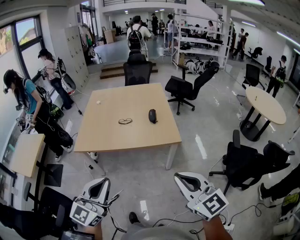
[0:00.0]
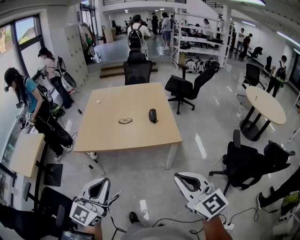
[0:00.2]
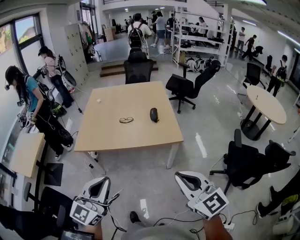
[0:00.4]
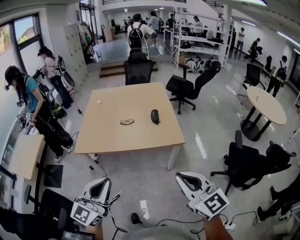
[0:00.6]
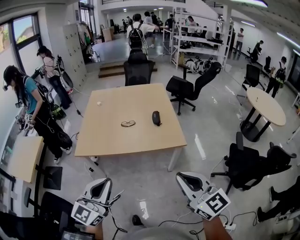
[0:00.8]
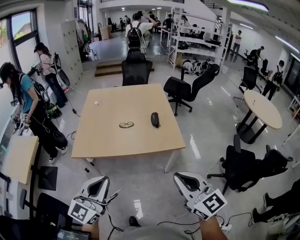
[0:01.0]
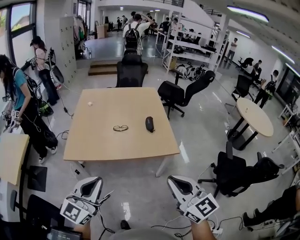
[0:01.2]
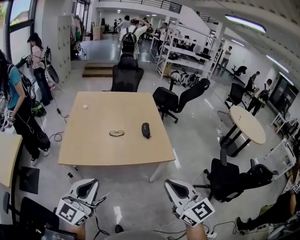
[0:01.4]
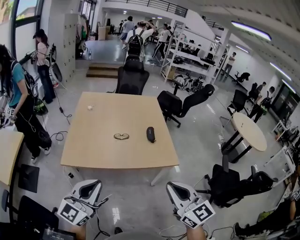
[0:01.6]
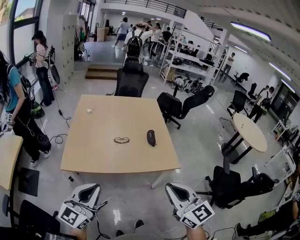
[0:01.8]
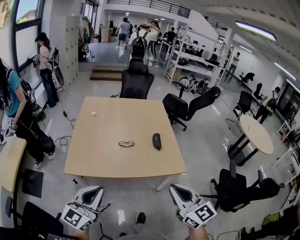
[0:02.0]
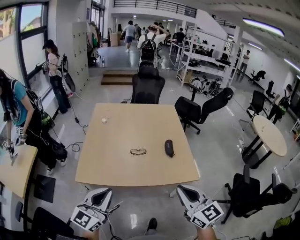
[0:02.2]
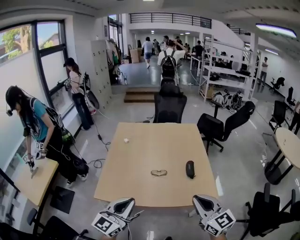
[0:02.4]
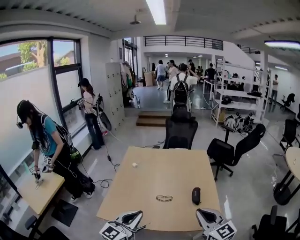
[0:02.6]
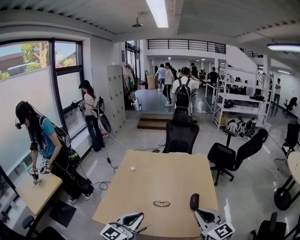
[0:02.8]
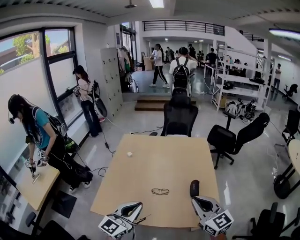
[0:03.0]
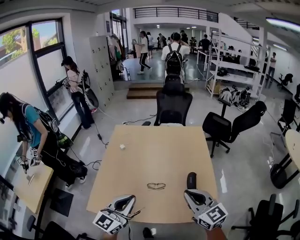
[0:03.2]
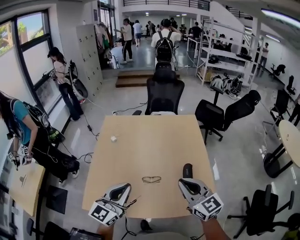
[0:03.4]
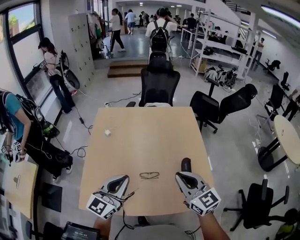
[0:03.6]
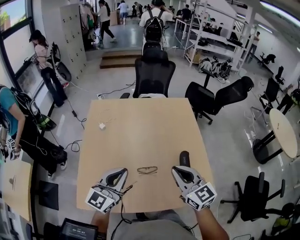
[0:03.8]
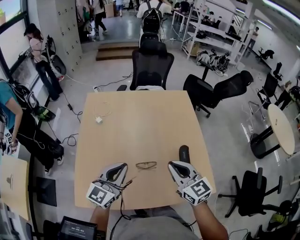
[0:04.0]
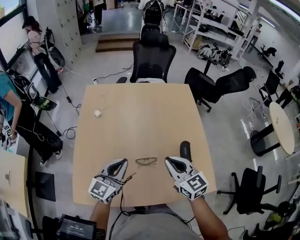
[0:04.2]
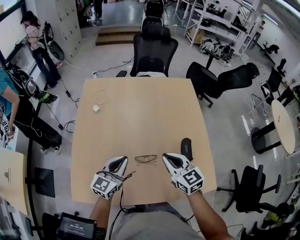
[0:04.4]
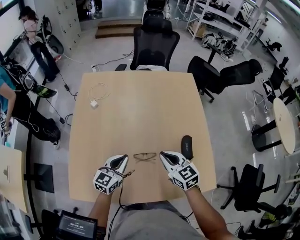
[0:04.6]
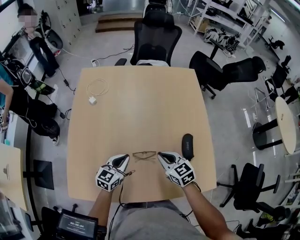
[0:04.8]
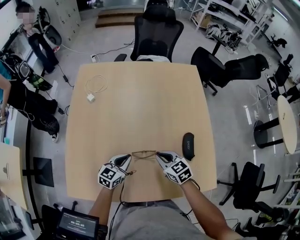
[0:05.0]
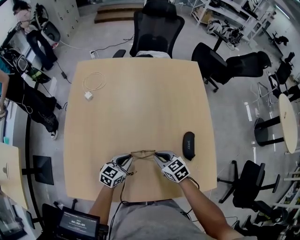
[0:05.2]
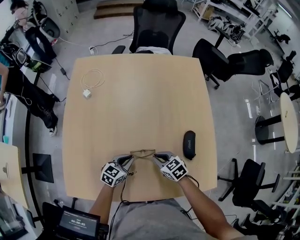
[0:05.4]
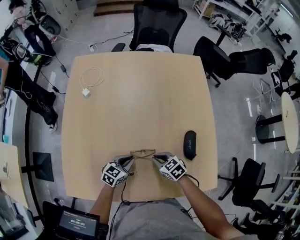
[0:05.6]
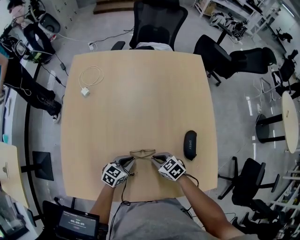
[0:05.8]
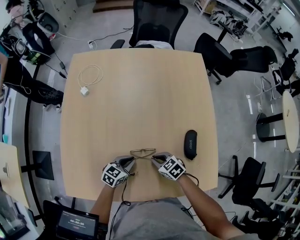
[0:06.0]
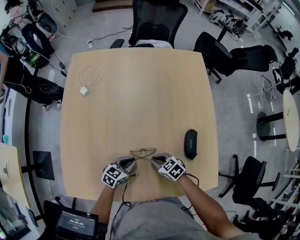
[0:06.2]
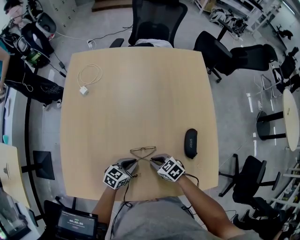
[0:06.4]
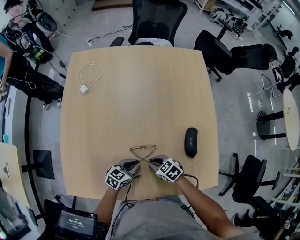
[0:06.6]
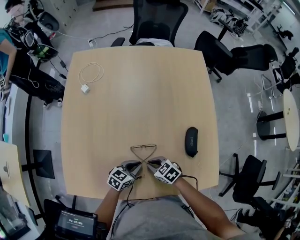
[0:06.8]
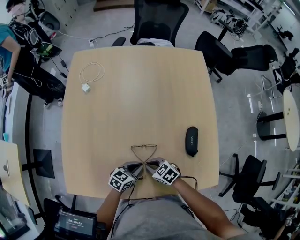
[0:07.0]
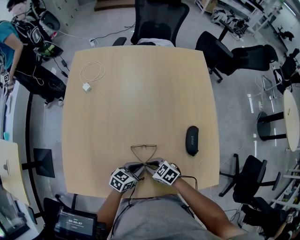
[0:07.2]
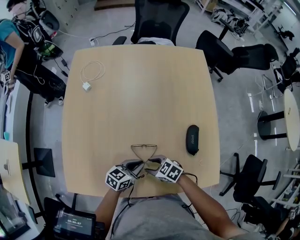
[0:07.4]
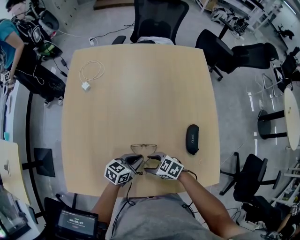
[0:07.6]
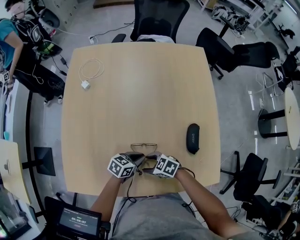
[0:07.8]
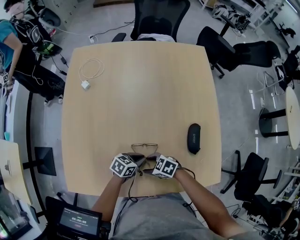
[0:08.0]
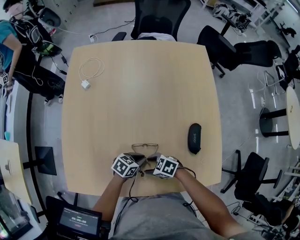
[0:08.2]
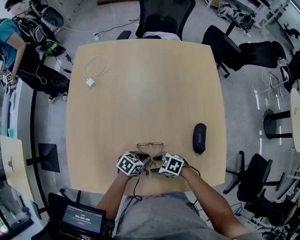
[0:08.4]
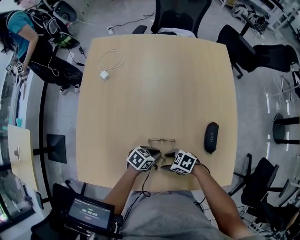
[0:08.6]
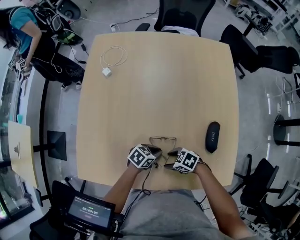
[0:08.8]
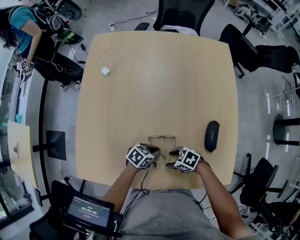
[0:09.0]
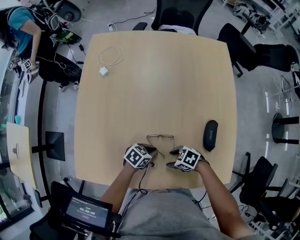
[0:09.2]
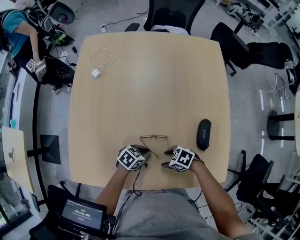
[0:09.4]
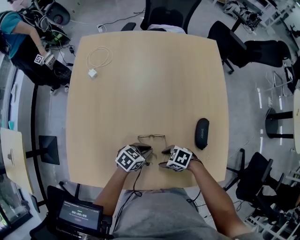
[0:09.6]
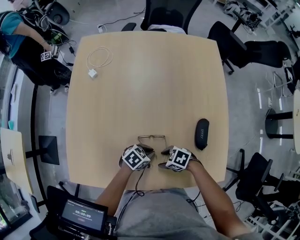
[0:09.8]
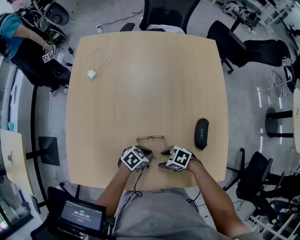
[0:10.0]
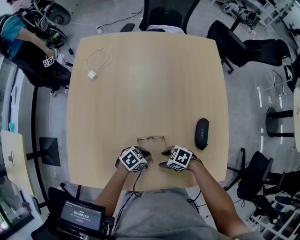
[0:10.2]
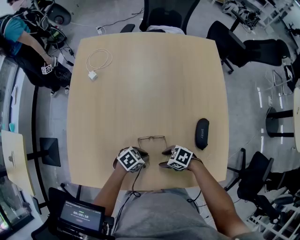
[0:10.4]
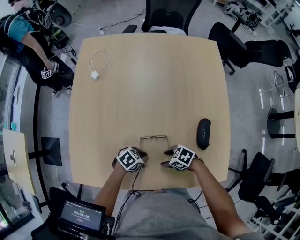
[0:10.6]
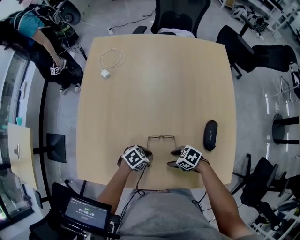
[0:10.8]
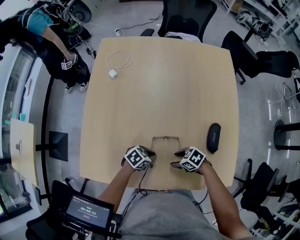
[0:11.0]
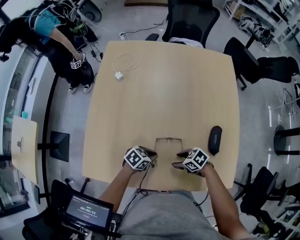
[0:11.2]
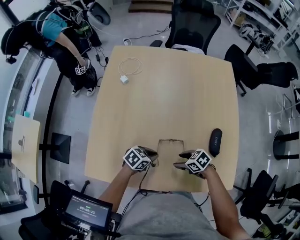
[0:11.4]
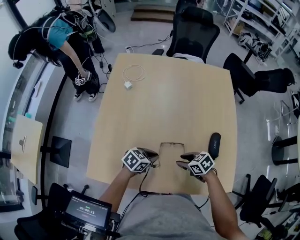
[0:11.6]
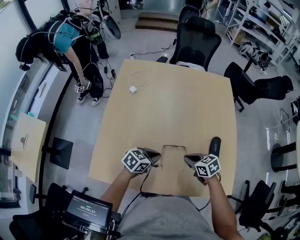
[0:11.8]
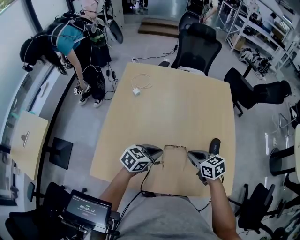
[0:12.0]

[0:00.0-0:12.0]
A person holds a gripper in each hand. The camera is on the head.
0:00.0 to 0:01.6: The left gripper moves forward and to the left, some 25 cm. The right gripper is displaced to the left and forward by some 25 cm.
0:01.6 to 0:03.0: Both grippers move forward, about 30 cm.
0:03.0 to 0:04.4: The left gripper shifts some 30 cm forward and downward. The right gripper travels forward, downward and to the left by approximately 30 cm.
0:04.4 to 0:06.0: The two grippers go some 25 cm downward. The right gripper angles its fingers downward, by some 30 degrees, while the left gripper turns by some 30 degrees.
0:06.0 to 0:07.6: The right gripper moves roughly 10 cm, and opens up, while the left gripper moves about 5 cm.
0:07.6 to 0:09.0: The right gripper moves roughly 5 cm. The left gripper is displaced downward by about 5 cm, and changes its angle by roughly 20 degrees.
0:09.0 to 0:10.4: There are only small adjustments of the grippers.
0:10.4 to 0:12.0: Both grippers travel together upward, approximately 20 cm. The right gripper swivels some 40 degrees, and closes. The left gripper rotates about 40 degrees.

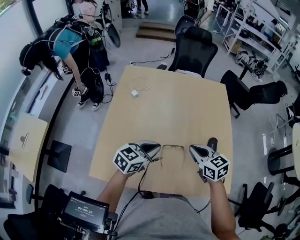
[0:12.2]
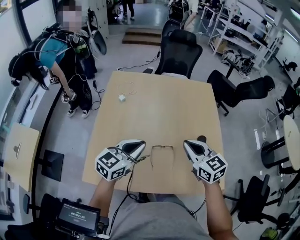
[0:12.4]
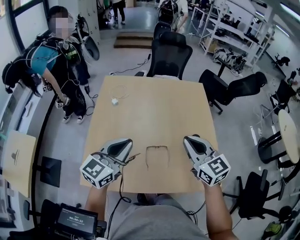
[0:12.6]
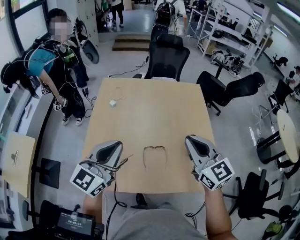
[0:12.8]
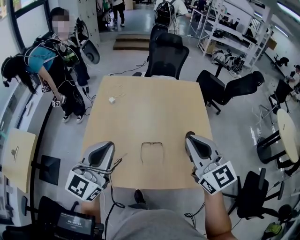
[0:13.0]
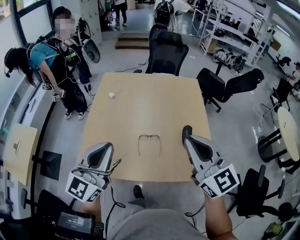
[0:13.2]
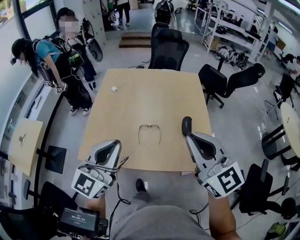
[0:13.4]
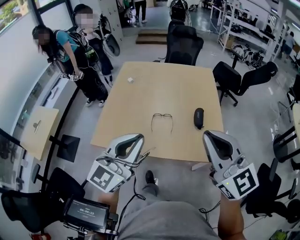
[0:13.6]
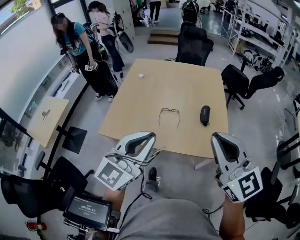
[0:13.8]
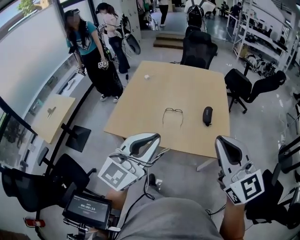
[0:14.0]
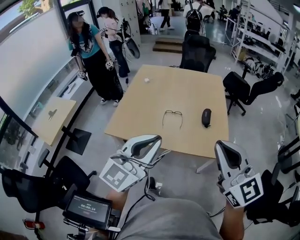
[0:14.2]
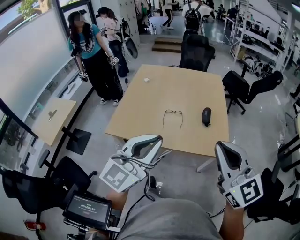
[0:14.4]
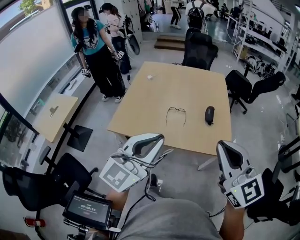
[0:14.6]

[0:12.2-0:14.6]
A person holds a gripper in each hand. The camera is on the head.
0:12.2 to 0:13.4: The left gripper goes roughly 35 cm backward and upward, and turns by roughly 40 degrees; the right gripper shifts some 35 cm upward and backward, and tips its fingers upward by about 30 degrees.
0:13.4 to 0:14.6: The grippers both shift backward by about 20 cm.

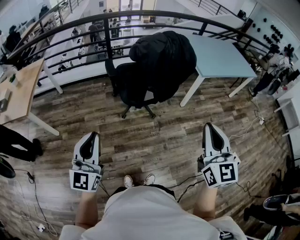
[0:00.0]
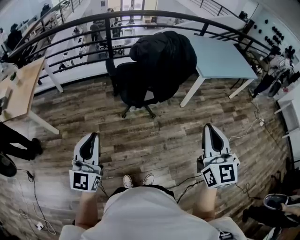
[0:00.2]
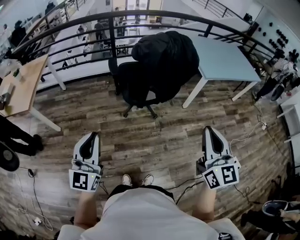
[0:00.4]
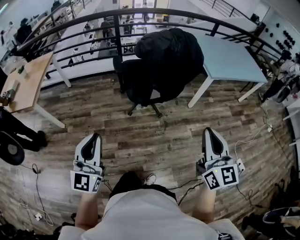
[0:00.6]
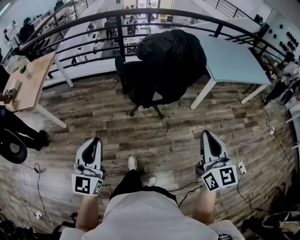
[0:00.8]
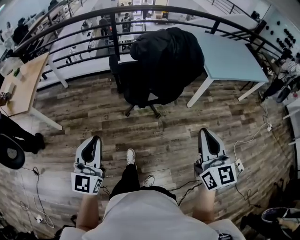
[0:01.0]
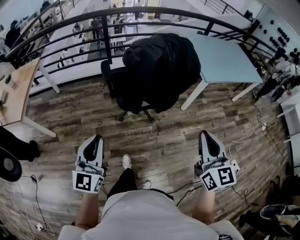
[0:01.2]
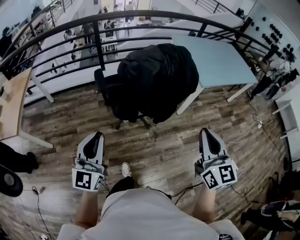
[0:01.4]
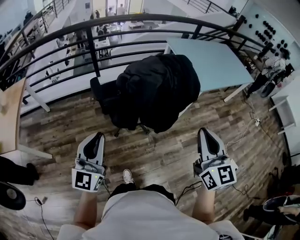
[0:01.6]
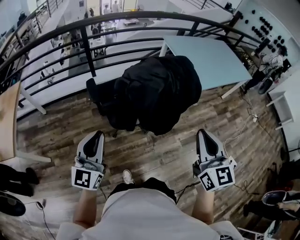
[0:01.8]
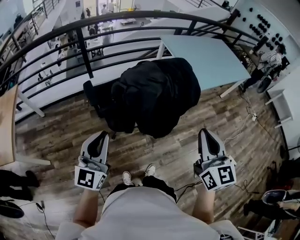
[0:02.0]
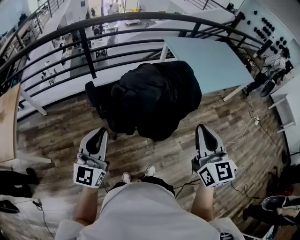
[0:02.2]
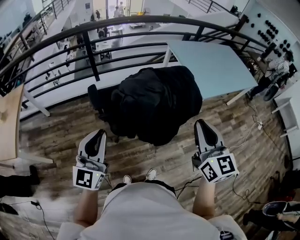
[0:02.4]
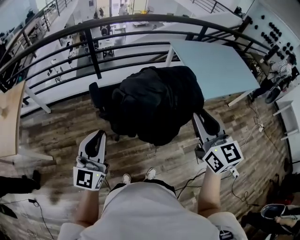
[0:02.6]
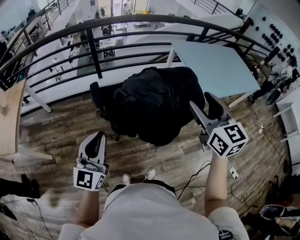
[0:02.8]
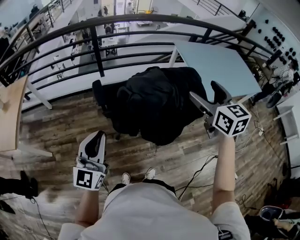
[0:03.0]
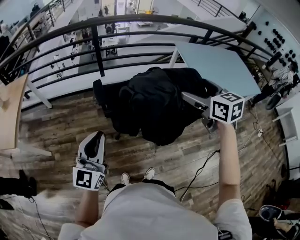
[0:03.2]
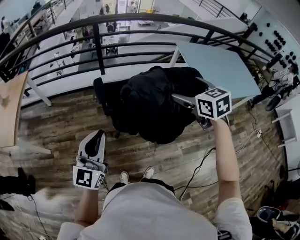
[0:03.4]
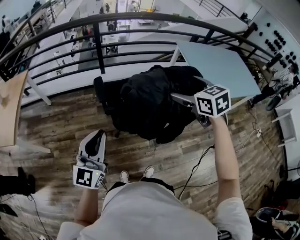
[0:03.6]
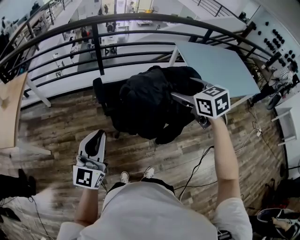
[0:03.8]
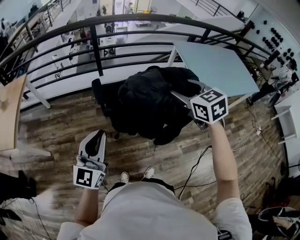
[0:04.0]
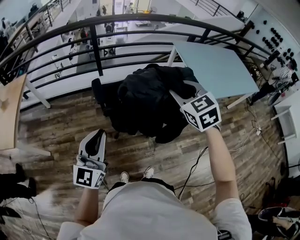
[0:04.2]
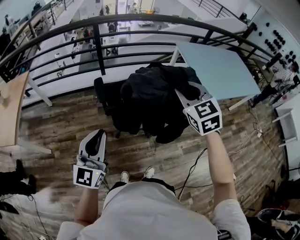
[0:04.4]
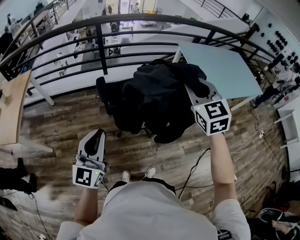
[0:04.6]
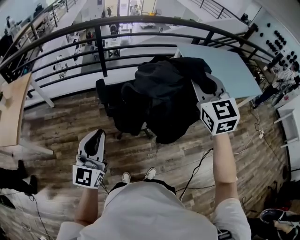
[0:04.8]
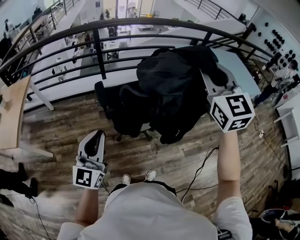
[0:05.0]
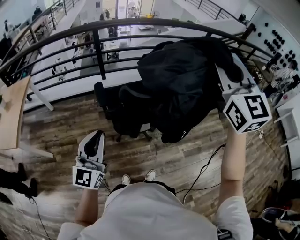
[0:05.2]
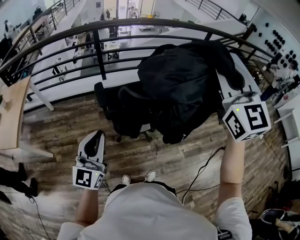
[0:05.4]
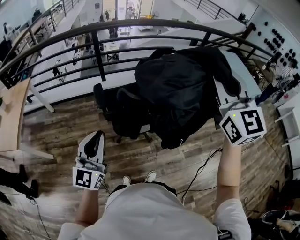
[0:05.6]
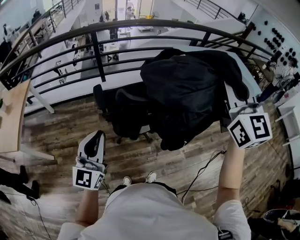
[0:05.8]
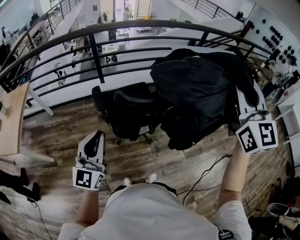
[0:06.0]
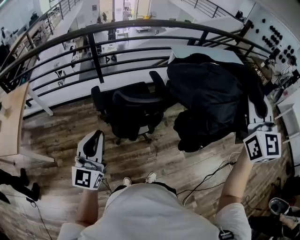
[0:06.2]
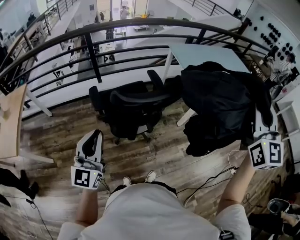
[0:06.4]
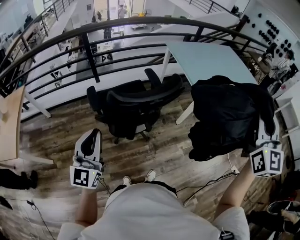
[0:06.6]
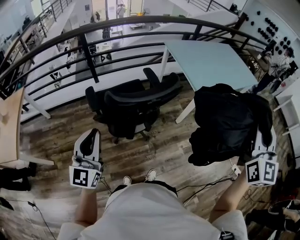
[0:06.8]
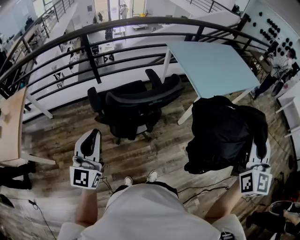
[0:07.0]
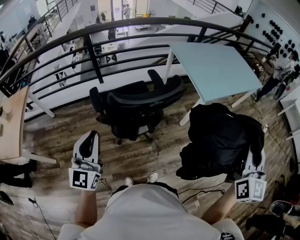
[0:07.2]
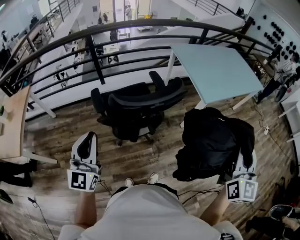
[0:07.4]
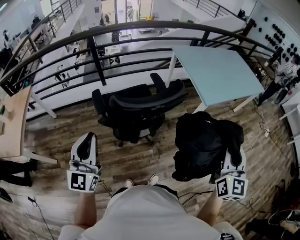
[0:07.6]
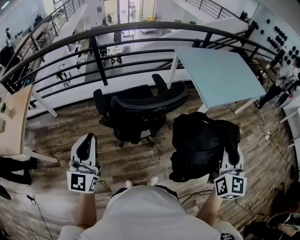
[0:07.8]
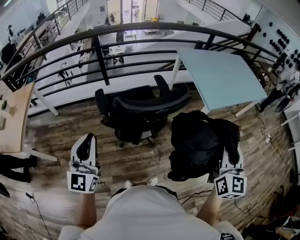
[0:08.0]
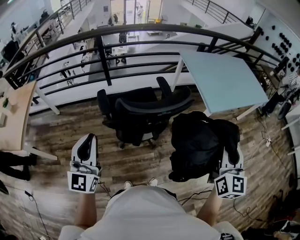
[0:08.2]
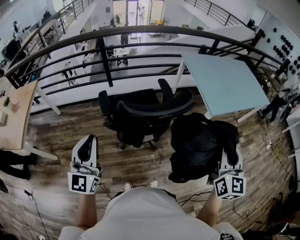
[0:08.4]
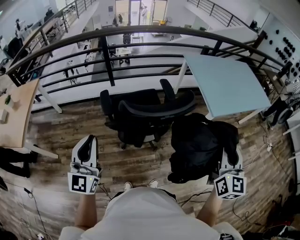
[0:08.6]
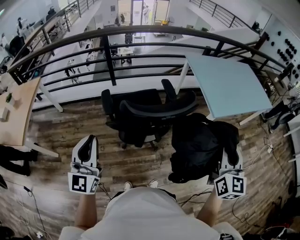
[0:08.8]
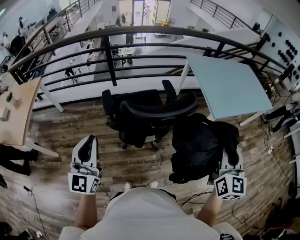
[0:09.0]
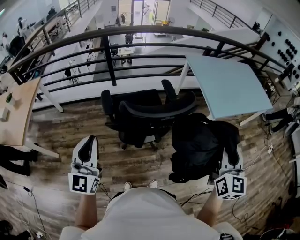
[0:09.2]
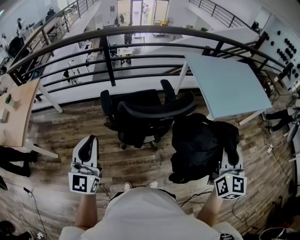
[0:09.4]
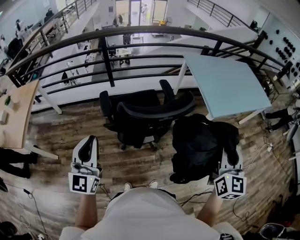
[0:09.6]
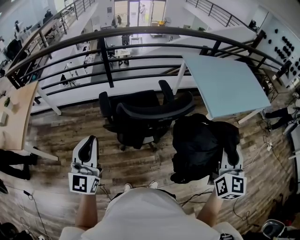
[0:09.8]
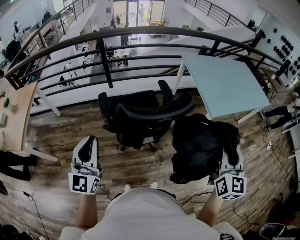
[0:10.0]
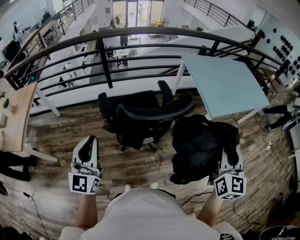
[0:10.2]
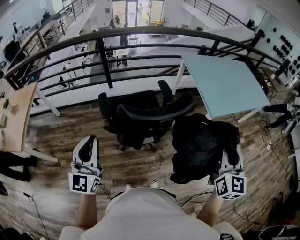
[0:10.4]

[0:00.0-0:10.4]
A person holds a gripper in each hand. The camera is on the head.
0:00.0 to 0:01.4: Both grippers move forward, about 20 cm.
0:01.4 to 0:03.0: The left gripper heads forward, covering about 10 cm, while the right gripper heads forward, covering about 25 cm, and opens.
0:03.0 to 0:04.4: The right gripper moves to the left, roughly 10 cm, swivels some 20 degrees, and closes.
0:04.4 to 0:06.0: The right gripper heads upward and to the right, covering approximately 25 cm, and points its fingers about 30 degrees further upward.
0:06.0 to 0:07.4: The right gripper moves to the right, downward and backward, some 25 cm, and turns by some 30 degrees.
0:07.4 to 0:09.0: The right gripper goes about 10 cm forward and to the left.
0:09.0 to 0:10.4: The grippers stay close to where they were, moving slightly.
